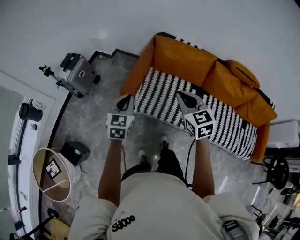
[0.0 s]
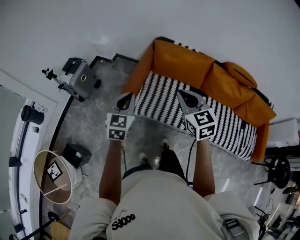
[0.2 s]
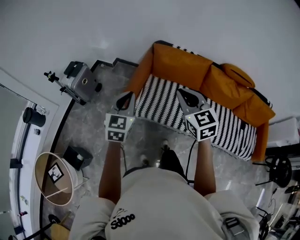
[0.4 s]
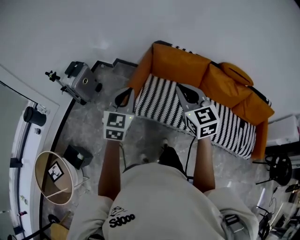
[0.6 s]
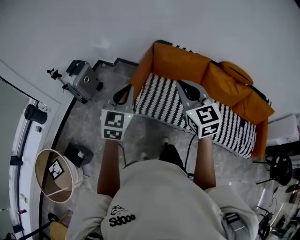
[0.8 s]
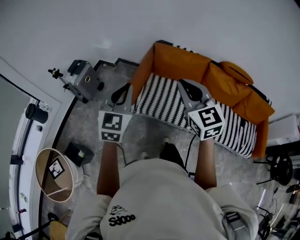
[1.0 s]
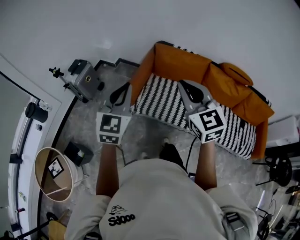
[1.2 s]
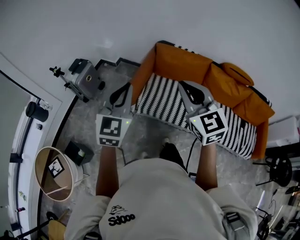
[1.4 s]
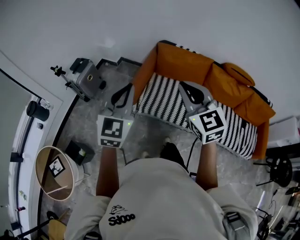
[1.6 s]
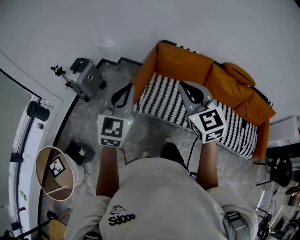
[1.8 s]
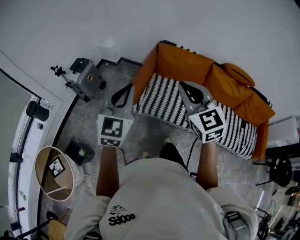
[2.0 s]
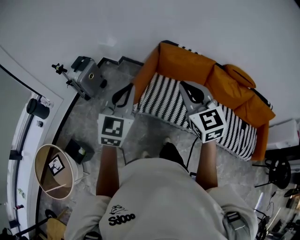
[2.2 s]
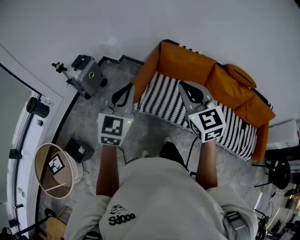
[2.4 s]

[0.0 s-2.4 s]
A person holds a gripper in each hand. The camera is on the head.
0.0 to 1.2 s: Both grippers move upward and backward, approximately 20 cm. The left gripper swivels roughly 20 degrees.
1.2 to 2.4 s: There are only small adjustments of the grippers.

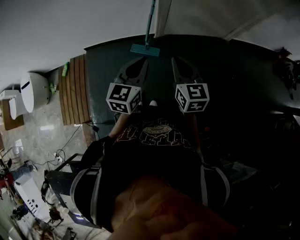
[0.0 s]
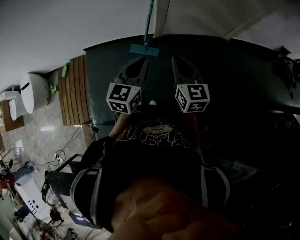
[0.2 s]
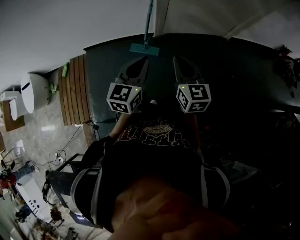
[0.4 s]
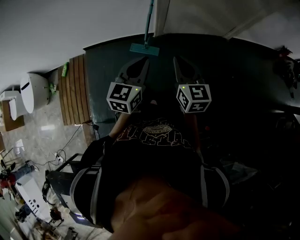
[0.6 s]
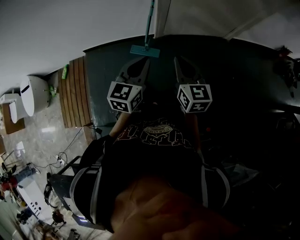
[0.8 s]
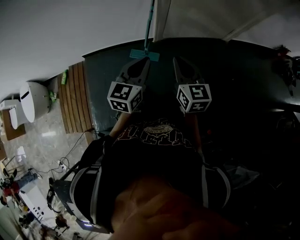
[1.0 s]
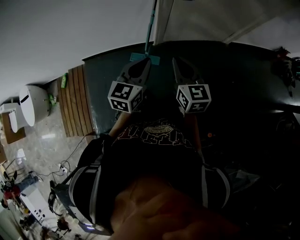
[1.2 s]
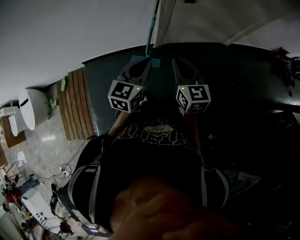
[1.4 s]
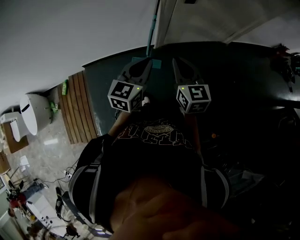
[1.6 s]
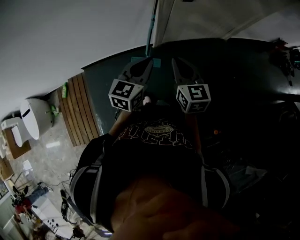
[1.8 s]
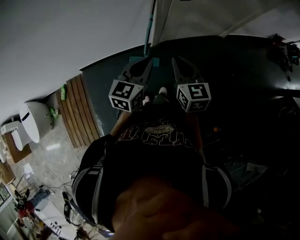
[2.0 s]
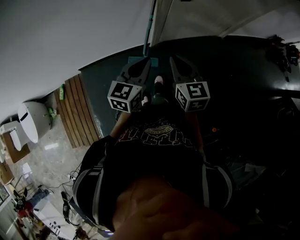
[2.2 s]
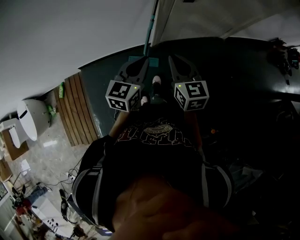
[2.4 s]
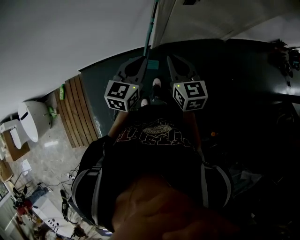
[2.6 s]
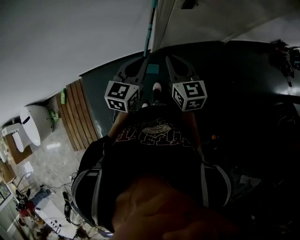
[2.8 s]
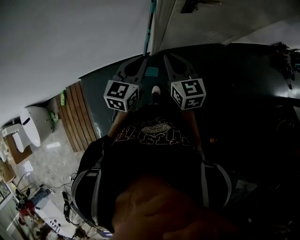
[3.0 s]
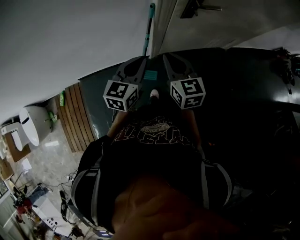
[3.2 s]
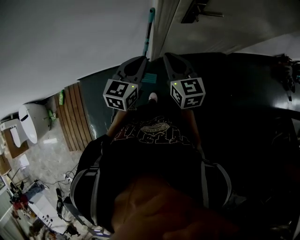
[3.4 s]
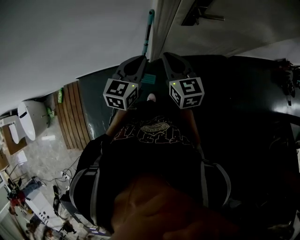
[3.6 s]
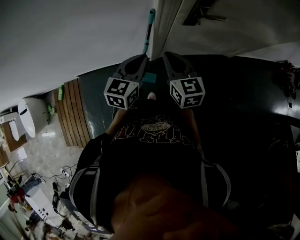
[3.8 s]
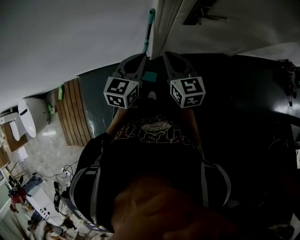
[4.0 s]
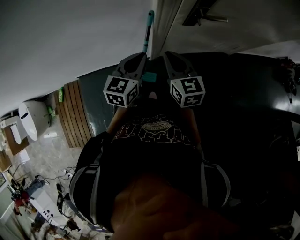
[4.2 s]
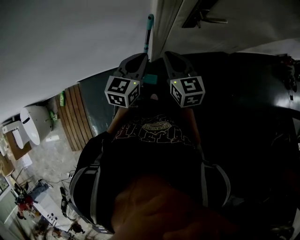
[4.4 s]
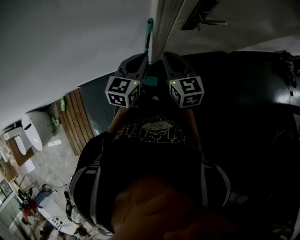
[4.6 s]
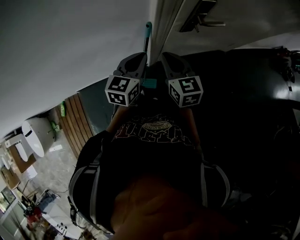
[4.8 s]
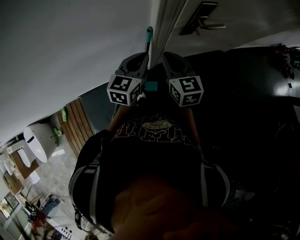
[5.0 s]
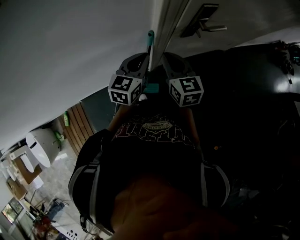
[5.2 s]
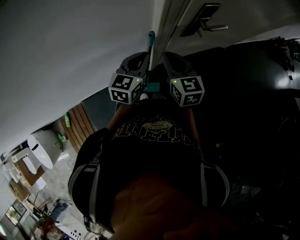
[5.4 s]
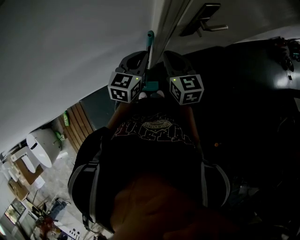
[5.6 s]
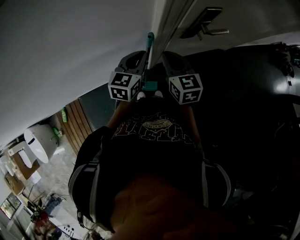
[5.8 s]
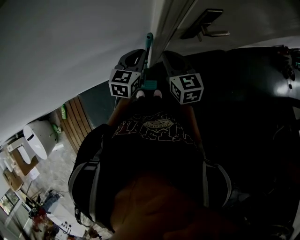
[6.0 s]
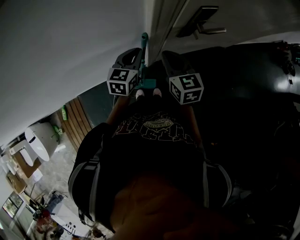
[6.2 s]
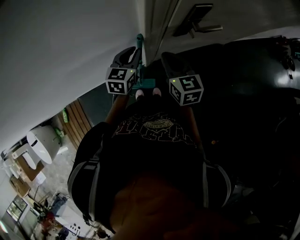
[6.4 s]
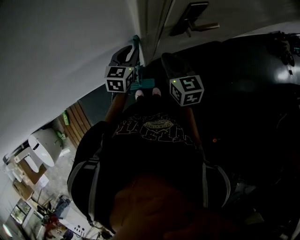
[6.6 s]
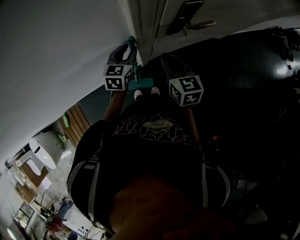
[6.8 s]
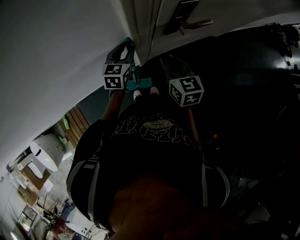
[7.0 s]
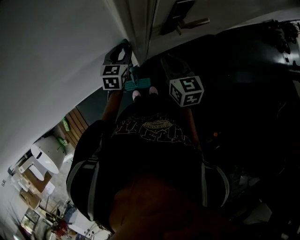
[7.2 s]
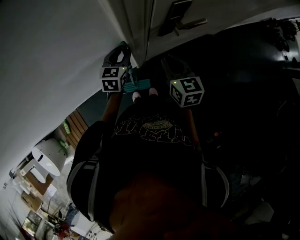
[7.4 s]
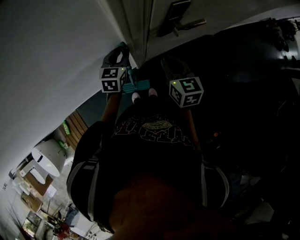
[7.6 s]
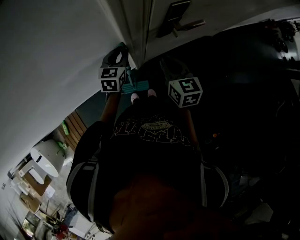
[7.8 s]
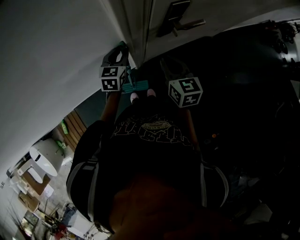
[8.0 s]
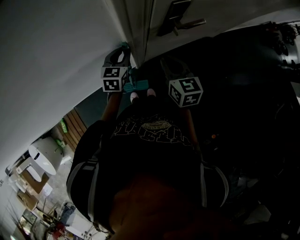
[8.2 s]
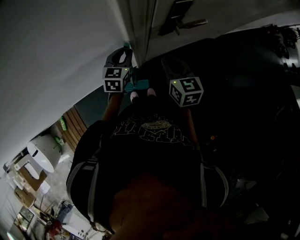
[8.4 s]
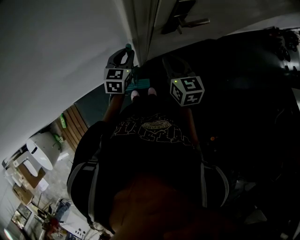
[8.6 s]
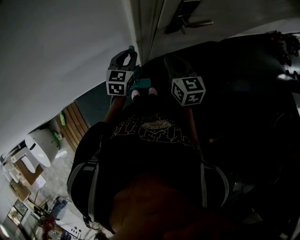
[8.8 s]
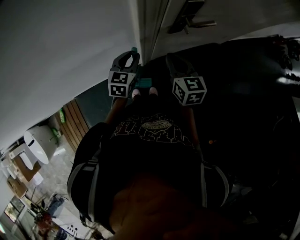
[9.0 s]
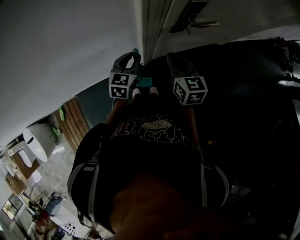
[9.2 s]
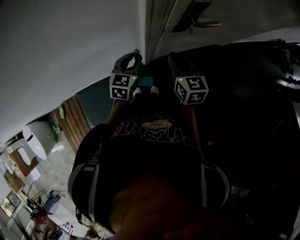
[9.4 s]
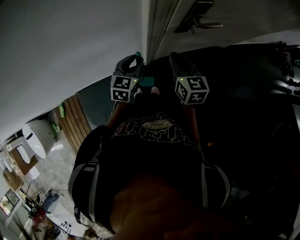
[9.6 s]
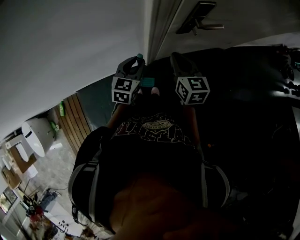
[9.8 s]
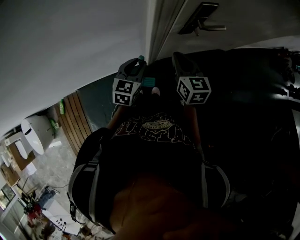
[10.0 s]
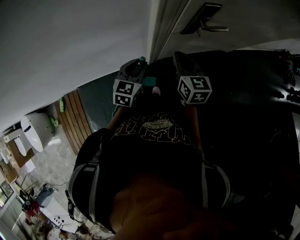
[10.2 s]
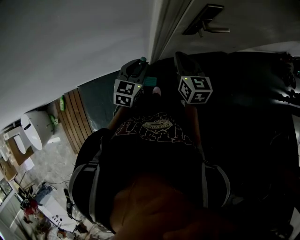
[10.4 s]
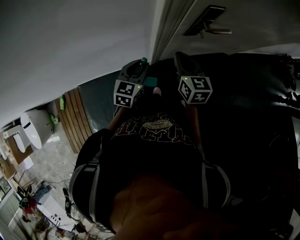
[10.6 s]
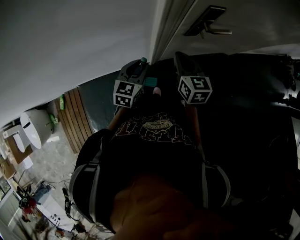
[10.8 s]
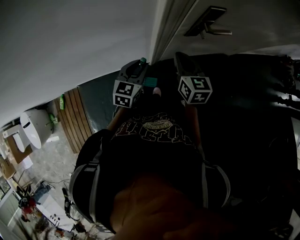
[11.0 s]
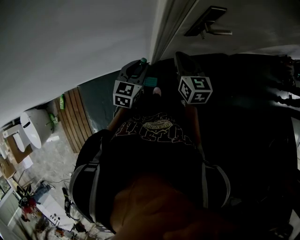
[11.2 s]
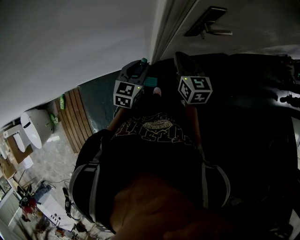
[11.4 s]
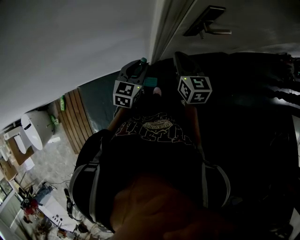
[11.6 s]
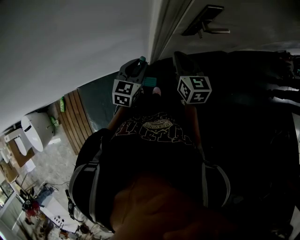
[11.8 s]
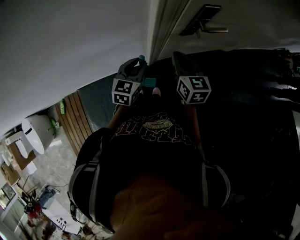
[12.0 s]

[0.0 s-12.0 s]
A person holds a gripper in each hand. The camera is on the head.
0.0 to 1.6 s: The right gripper is displaced forward and to the left by roughly 15 cm. Meanwhile the left gripper travels forward by approximately 15 cm.
1.6 to 3.0 s: Both grippers move forward, some 15 cm.
3.0 to 4.4 s: The grippers both shift forward by about 15 cm.
4.4 to 6.0 s: Both grippers move forward, some 10 cm.
6.0 to 7.6 s: The left gripper goes some 5 cm forward, and opens. Meanwhile the right gripper goes about 10 cm to the right.
7.6 to 9.0 s: The left gripper heads backward, covering roughly 10 cm.
9.0 to 10.4 s: The left gripper heads backward, covering roughly 5 cm.
10.4 to 12.0 s: The grippers move only a little.

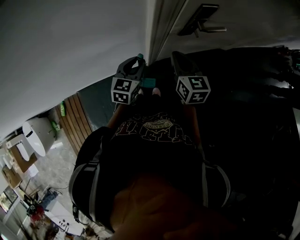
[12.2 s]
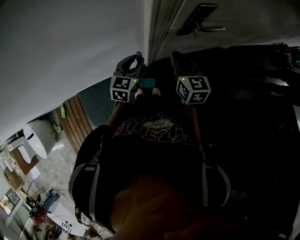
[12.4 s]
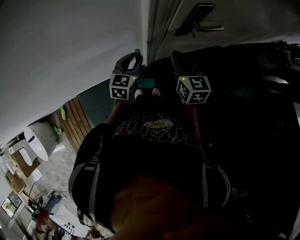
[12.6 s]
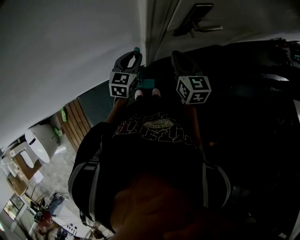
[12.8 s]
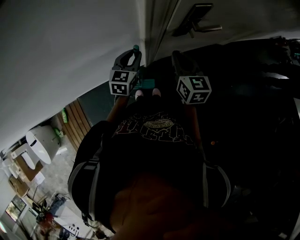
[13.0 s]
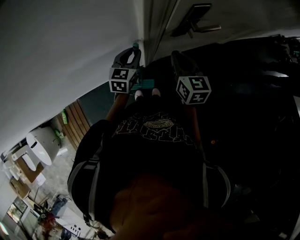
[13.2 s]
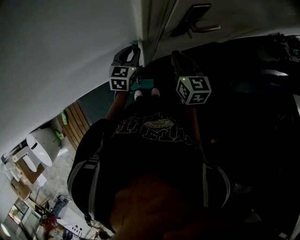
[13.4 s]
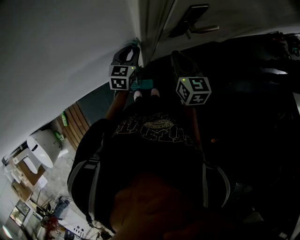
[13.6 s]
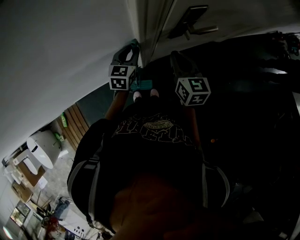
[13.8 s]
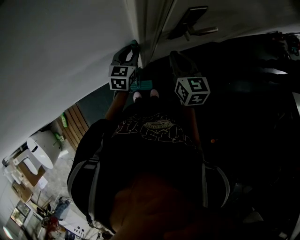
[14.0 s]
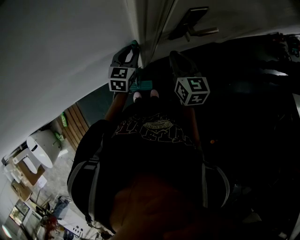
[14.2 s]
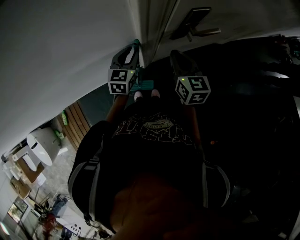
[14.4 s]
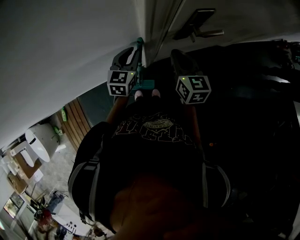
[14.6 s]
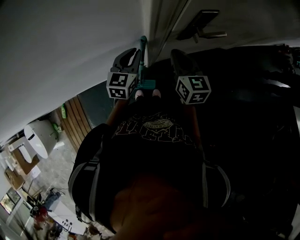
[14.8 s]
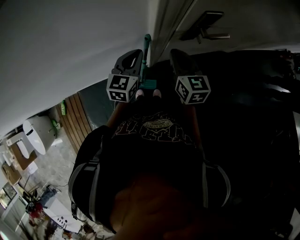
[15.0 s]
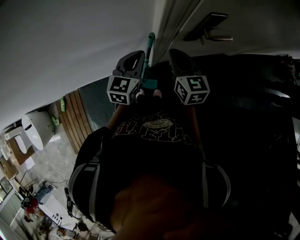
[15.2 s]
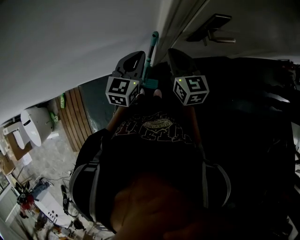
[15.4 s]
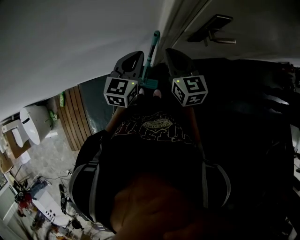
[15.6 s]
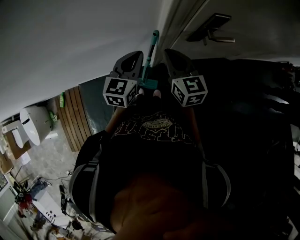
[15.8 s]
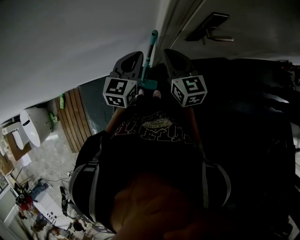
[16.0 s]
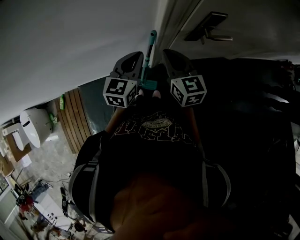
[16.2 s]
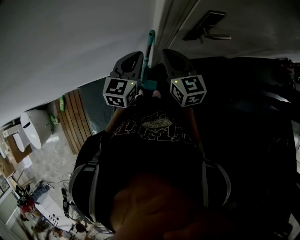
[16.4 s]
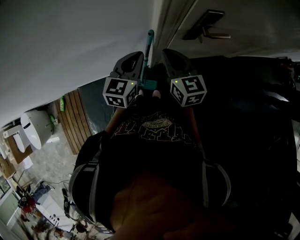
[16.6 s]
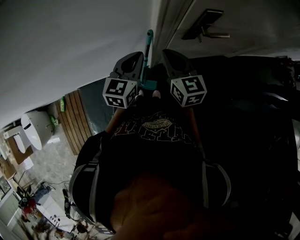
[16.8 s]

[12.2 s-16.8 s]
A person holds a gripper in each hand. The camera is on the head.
12.2 to 13.8 s: The left gripper travels forward by some 10 cm. Meanwhile the right gripper shifts by approximately 5 cm.
13.8 to 15.2 s: The right gripper heads to the left, covering roughly 5 cm. The left gripper moves upward and backward, about 10 cm, and closes up.
15.2 to 16.8 s: The grippers make only small movements.

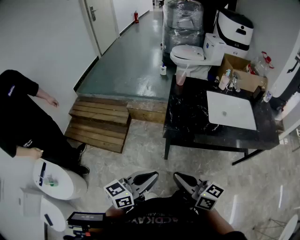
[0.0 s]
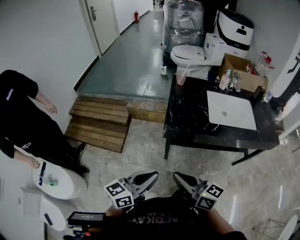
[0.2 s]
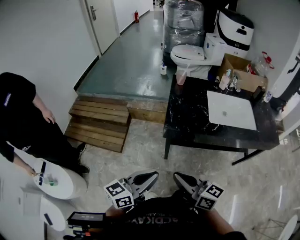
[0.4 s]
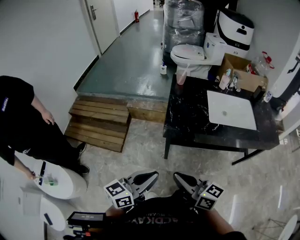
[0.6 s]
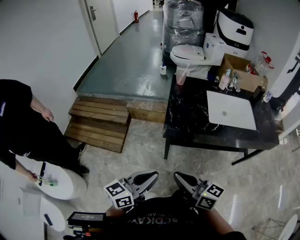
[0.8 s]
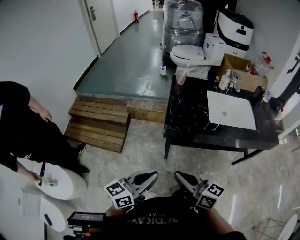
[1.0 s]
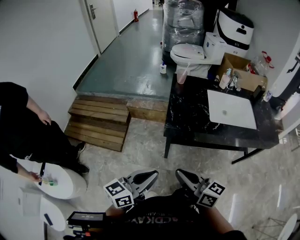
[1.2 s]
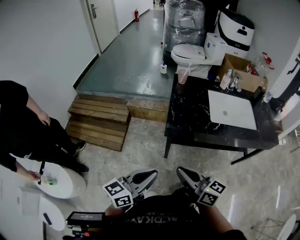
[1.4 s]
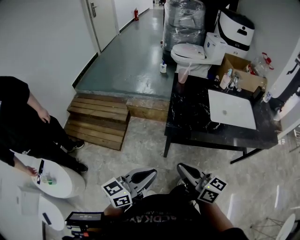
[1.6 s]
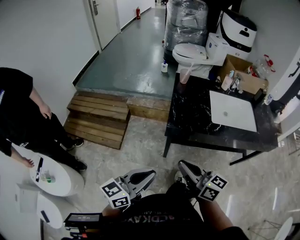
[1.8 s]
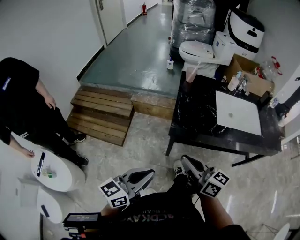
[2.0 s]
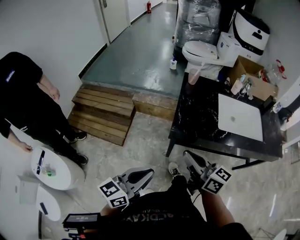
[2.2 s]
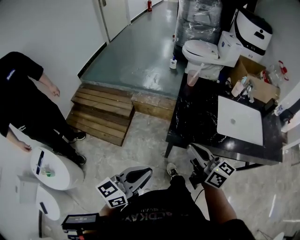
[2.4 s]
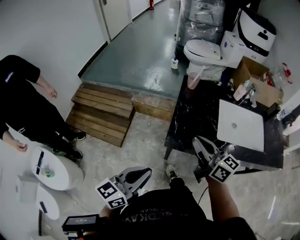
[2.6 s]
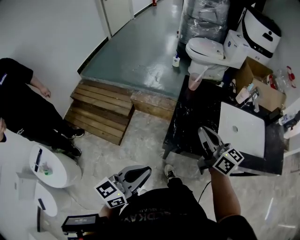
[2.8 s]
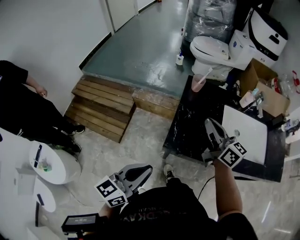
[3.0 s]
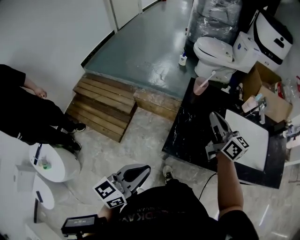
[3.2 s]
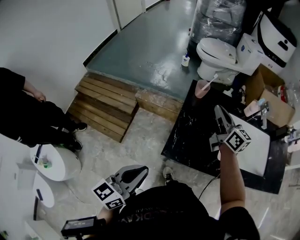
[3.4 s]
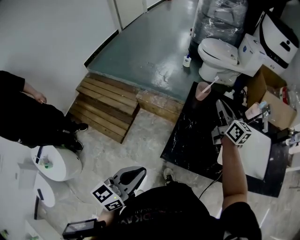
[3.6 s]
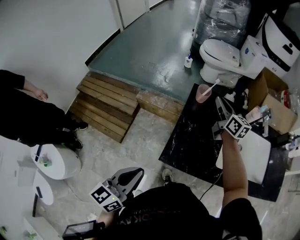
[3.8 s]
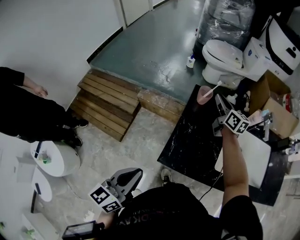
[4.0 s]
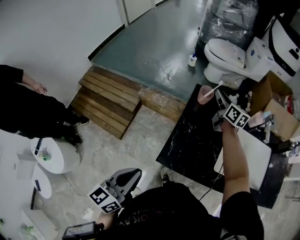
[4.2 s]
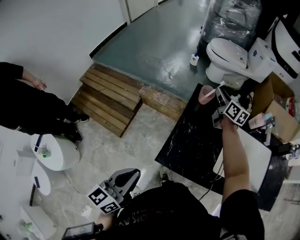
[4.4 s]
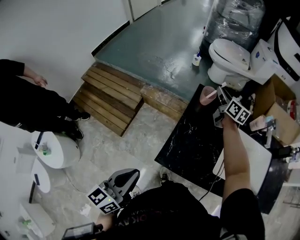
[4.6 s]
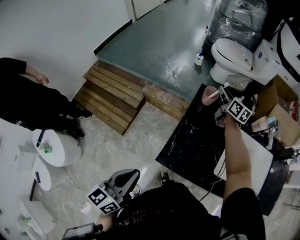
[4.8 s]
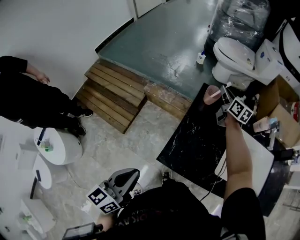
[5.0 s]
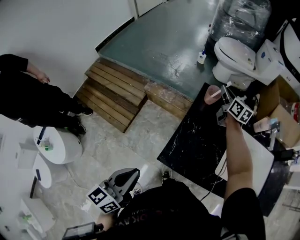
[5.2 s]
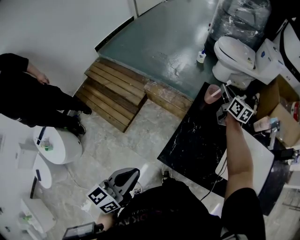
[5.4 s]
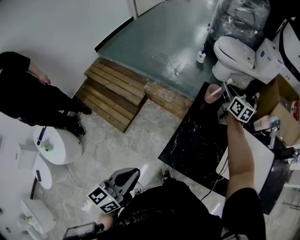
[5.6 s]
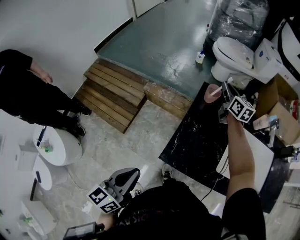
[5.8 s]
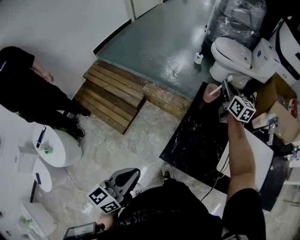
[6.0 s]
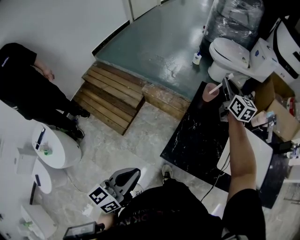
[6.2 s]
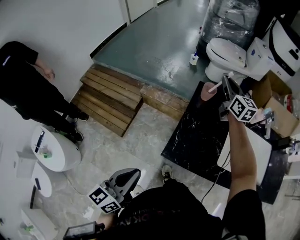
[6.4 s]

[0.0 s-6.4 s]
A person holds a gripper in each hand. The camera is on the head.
0.0 to 1.6 s: The grippers stay close to where they were, moving slightly.
1.6 to 3.2 s: The right gripper travels forward by about 40 cm. The left gripper shifts about 20 cm forward.
3.2 to 4.8 s: The right gripper is displaced forward by about 25 cm.
4.8 to 6.4 s: The right gripper is displaced upward and backward by some 10 cm, and changes its angle by approximately 20 degrees.
